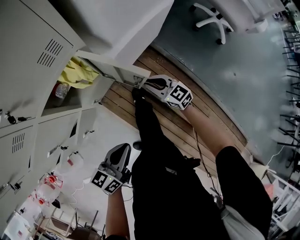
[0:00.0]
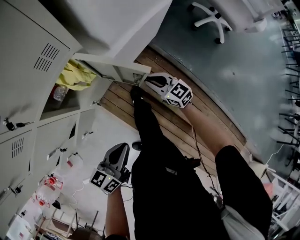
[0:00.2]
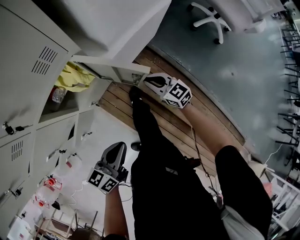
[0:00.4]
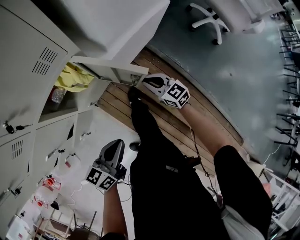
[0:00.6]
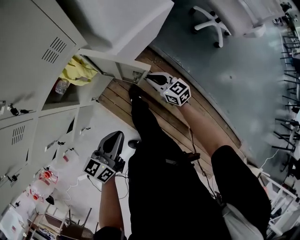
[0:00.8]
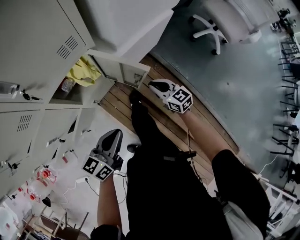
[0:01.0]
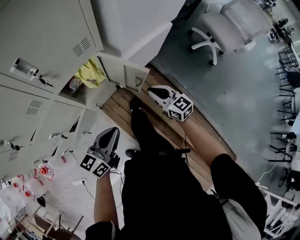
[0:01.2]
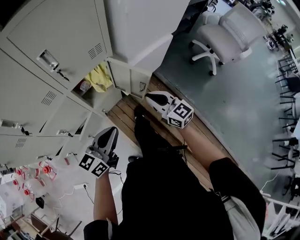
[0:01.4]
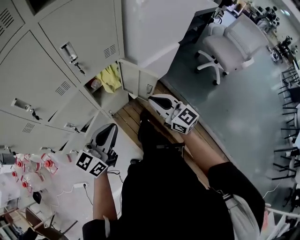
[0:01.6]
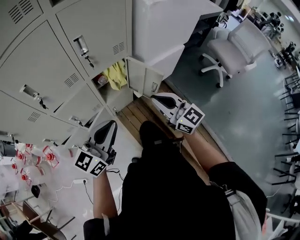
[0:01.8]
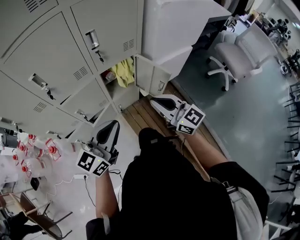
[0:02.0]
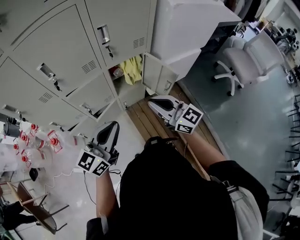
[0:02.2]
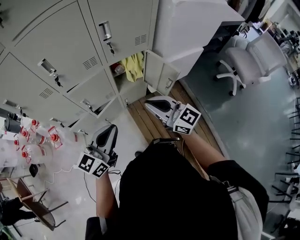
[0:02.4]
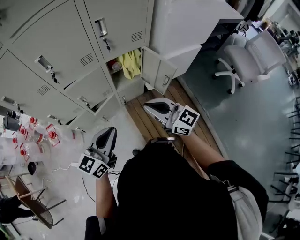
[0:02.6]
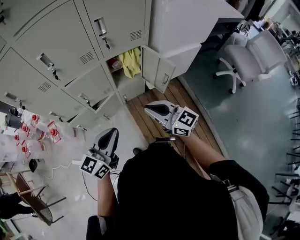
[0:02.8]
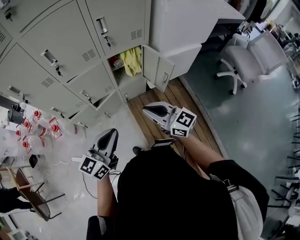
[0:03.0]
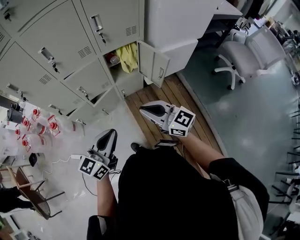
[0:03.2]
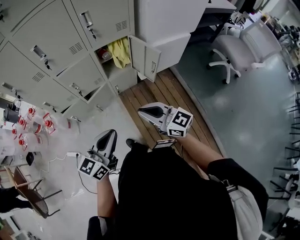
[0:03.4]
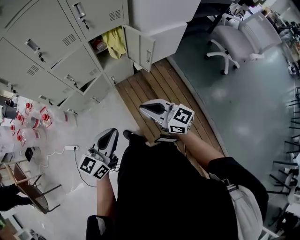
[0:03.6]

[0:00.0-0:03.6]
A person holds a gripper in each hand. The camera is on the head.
0:00.0 to 0:01.8: The right gripper goes some 40 cm upward and backward, and turns by about 30 degrees; the left gripper moves upward, roughly 25 cm, and turns by roughly 40 degrees.
0:01.8 to 0:03.6: Both grippers travel together backward, about 25 cm. The right gripper turns by some 20 degrees.

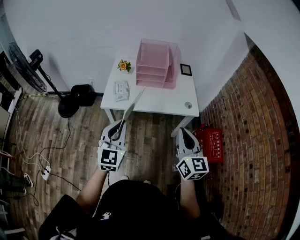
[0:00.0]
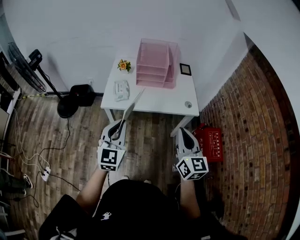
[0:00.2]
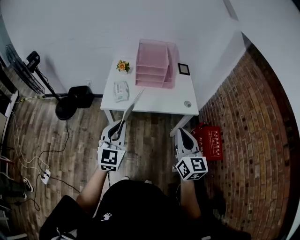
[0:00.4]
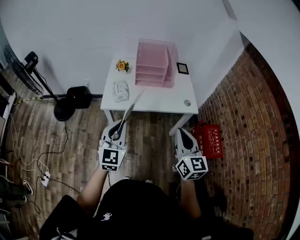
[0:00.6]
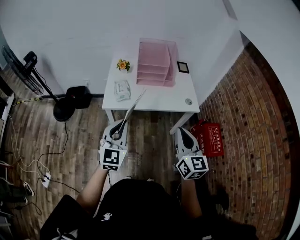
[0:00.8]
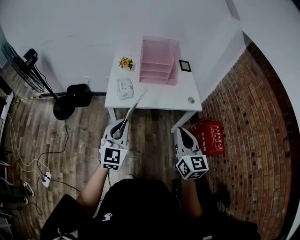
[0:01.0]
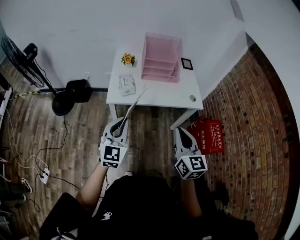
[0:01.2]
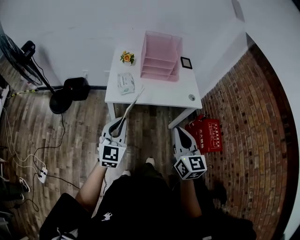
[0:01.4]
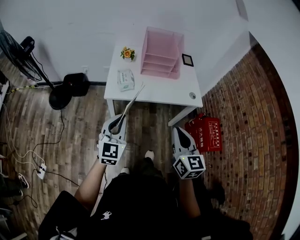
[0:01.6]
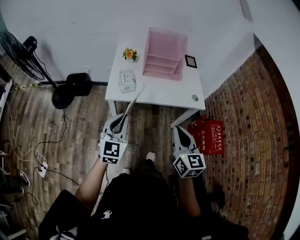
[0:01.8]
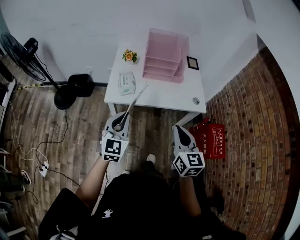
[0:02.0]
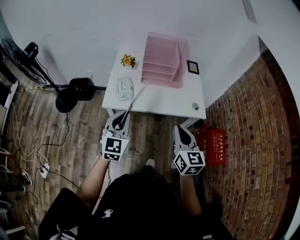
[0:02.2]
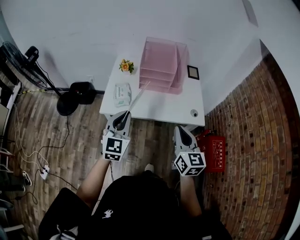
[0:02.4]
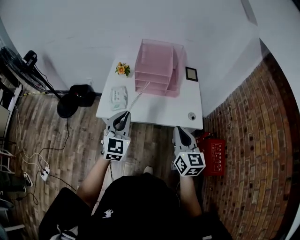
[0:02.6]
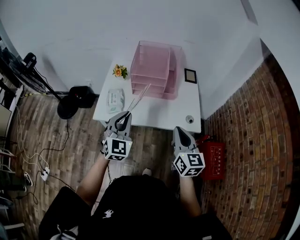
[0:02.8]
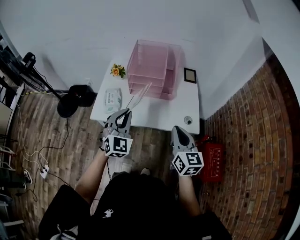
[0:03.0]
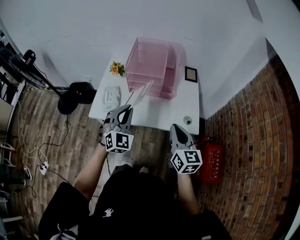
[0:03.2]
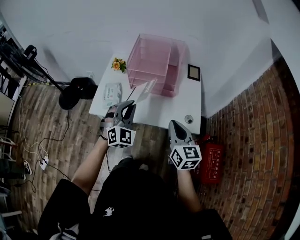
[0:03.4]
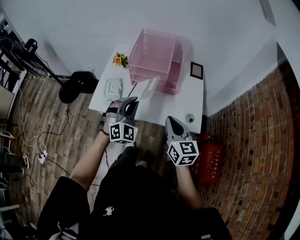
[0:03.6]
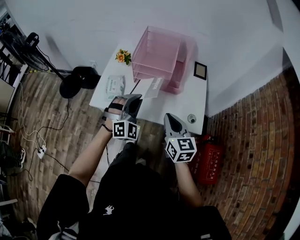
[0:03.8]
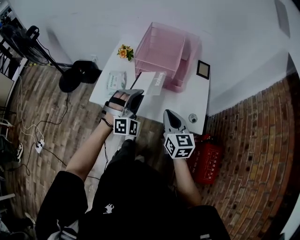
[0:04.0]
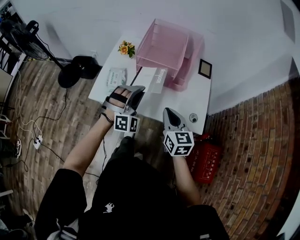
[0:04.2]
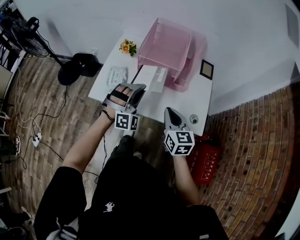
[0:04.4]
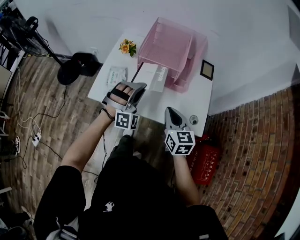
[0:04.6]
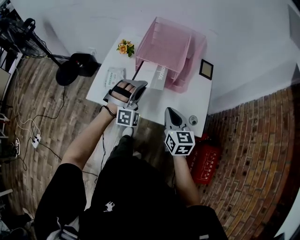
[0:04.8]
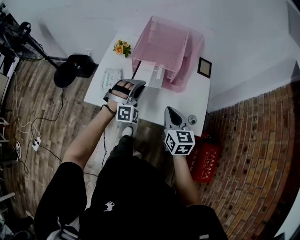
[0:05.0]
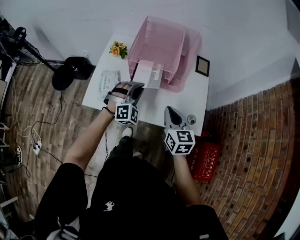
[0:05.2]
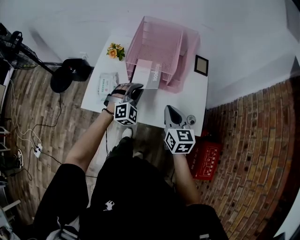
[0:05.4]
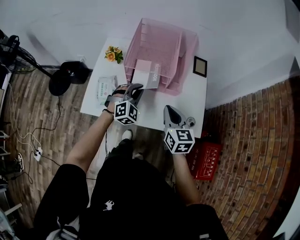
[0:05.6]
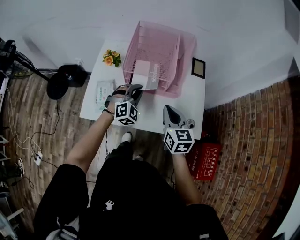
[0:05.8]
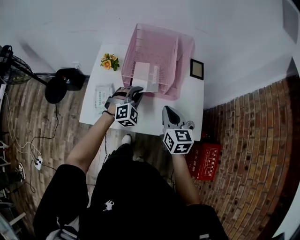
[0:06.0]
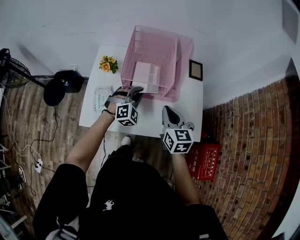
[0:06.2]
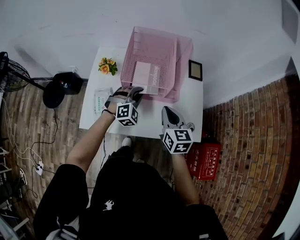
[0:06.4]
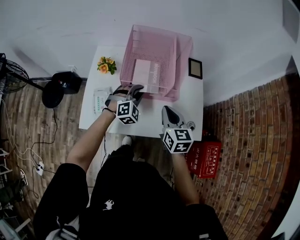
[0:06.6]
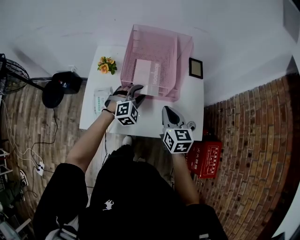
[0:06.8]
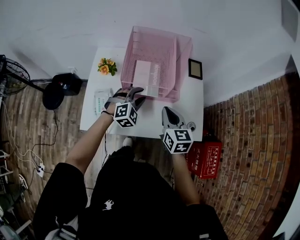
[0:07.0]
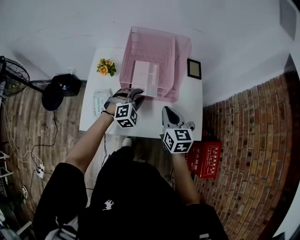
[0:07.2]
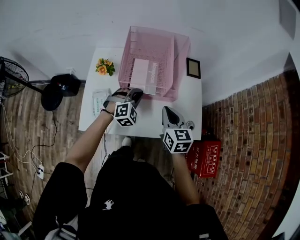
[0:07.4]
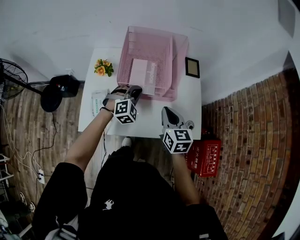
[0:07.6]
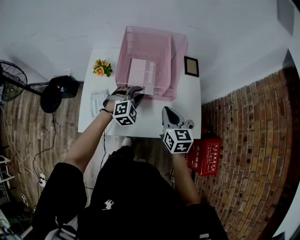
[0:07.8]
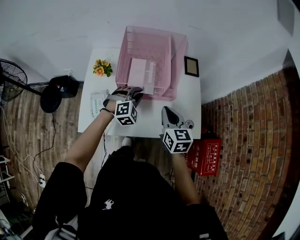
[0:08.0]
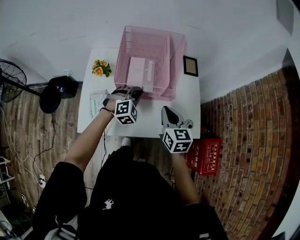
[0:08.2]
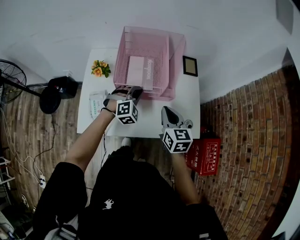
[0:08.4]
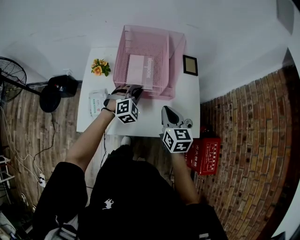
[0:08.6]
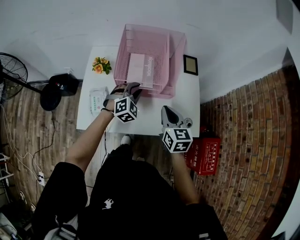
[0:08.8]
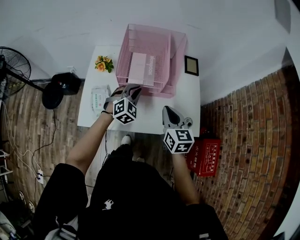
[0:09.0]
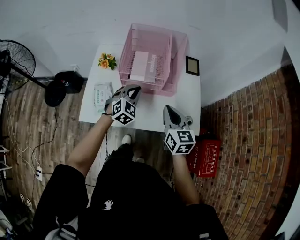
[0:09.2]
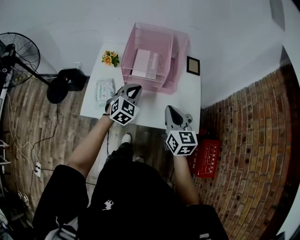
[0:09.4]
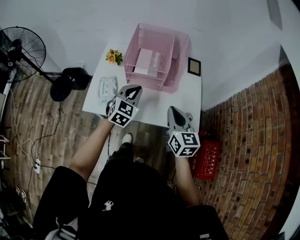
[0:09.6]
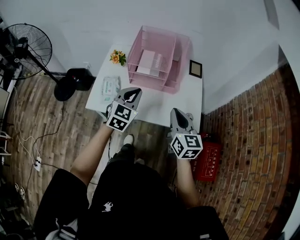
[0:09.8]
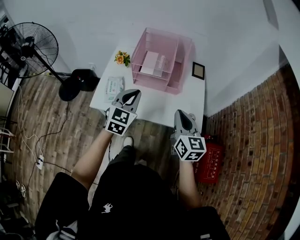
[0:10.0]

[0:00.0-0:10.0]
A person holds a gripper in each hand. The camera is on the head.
0:00.0 to 0:01.4: The two grippers go about 10 cm to the left.
0:01.4 to 0:02.8: Both grippers move forward and to the right, about 25 cm.
0:02.8 to 0:04.2: The left gripper is displaced forward, downward and to the right by some 15 cm, and rolls clockwise, seen from behind, by some 40 degrees; the right gripper moves forward and downward, some 15 cm.
0:04.2 to 0:05.8: The left gripper moves forward and downward, some 15 cm, and rotates approximately 30 degrees, while the right gripper travels forward by some 10 cm.
0:05.8 to 0:07.2: The left gripper opens its fingers.
0:07.2 to 0:08.6: The grippers stay close to where they were, moving slightly.
0:08.6 to 0:10.0: Both grippers travel together backward and upward, approximately 20 cm. The left gripper turns by about 50 degrees.

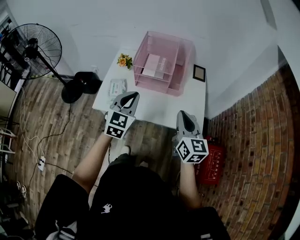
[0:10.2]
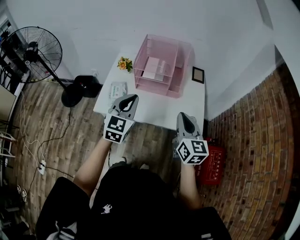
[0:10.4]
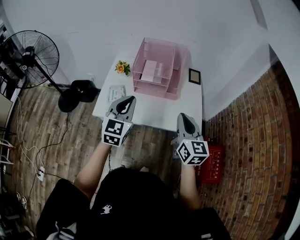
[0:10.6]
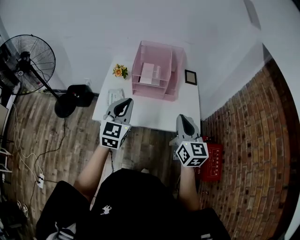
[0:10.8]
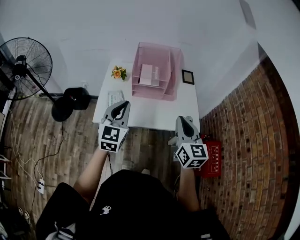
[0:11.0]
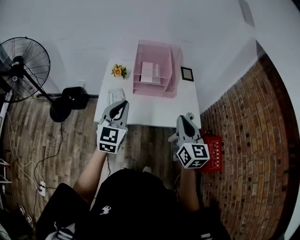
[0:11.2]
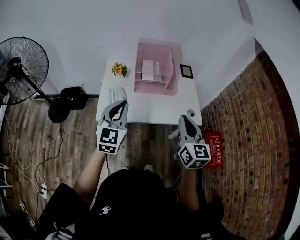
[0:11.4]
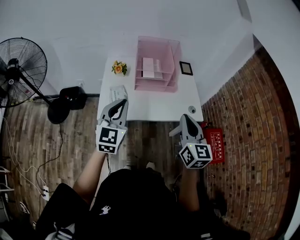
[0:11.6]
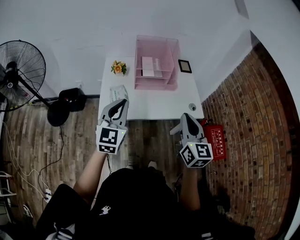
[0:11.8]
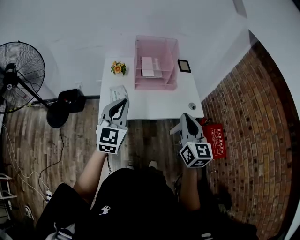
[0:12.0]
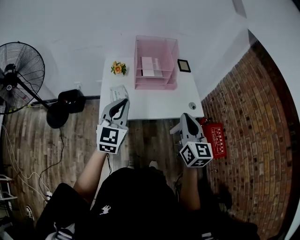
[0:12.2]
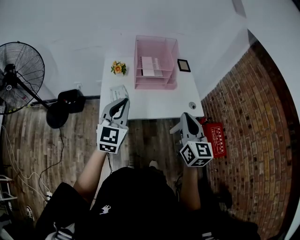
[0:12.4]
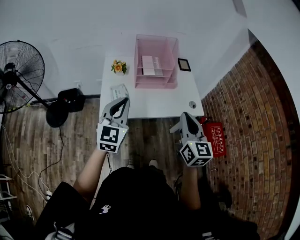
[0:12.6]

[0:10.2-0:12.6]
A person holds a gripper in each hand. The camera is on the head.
0:10.2 to 0:11.4: The two grippers go approximately 15 cm to the left, backward and upward.
0:11.4 to 0:12.6: The grippers make only small movements.

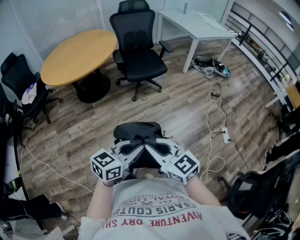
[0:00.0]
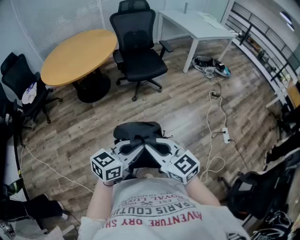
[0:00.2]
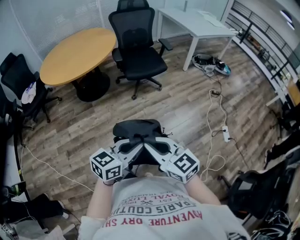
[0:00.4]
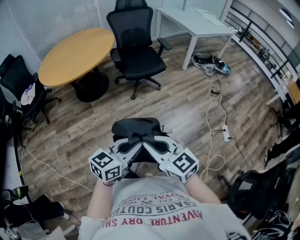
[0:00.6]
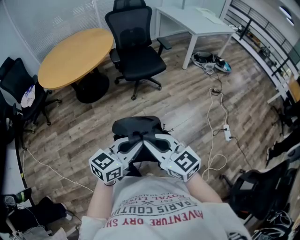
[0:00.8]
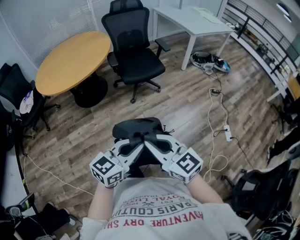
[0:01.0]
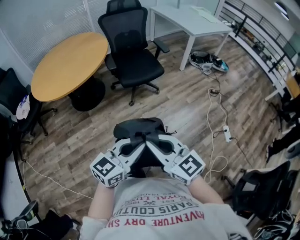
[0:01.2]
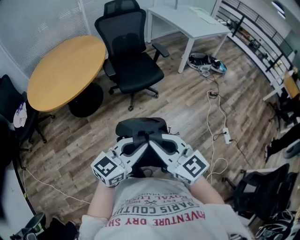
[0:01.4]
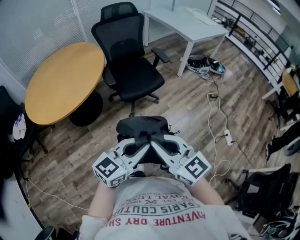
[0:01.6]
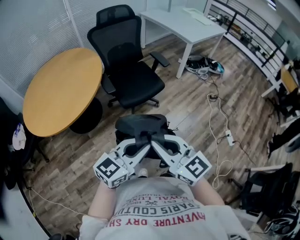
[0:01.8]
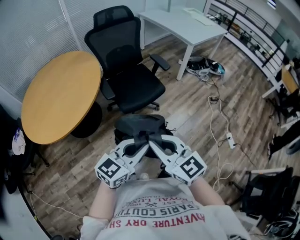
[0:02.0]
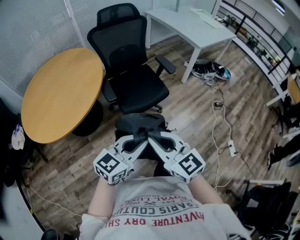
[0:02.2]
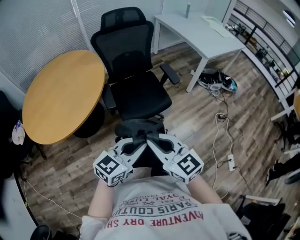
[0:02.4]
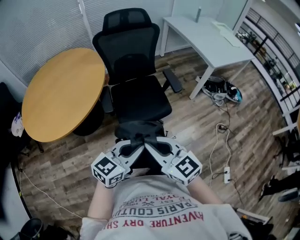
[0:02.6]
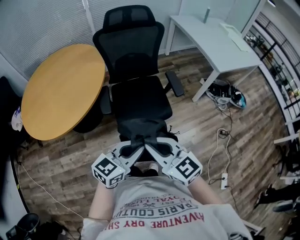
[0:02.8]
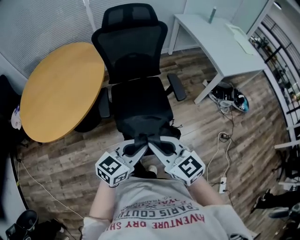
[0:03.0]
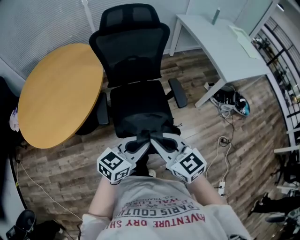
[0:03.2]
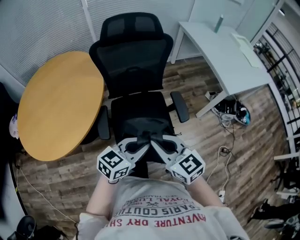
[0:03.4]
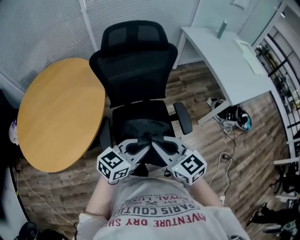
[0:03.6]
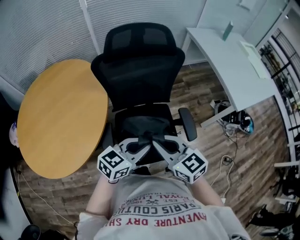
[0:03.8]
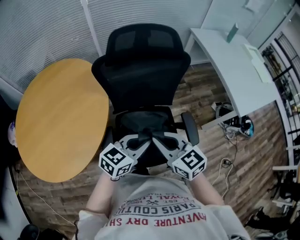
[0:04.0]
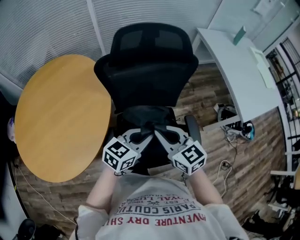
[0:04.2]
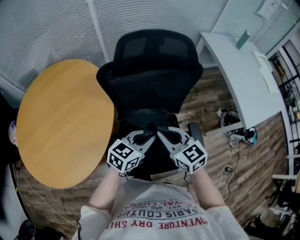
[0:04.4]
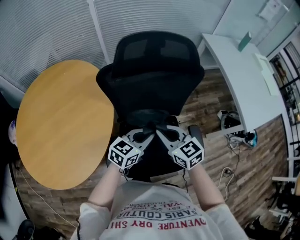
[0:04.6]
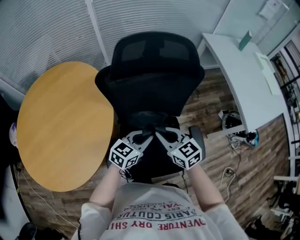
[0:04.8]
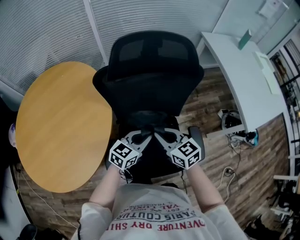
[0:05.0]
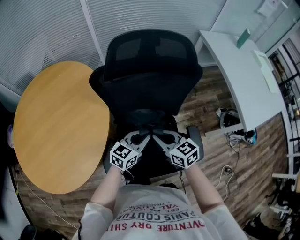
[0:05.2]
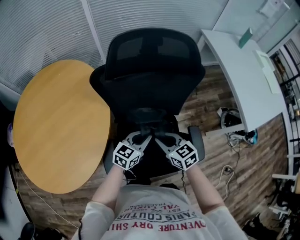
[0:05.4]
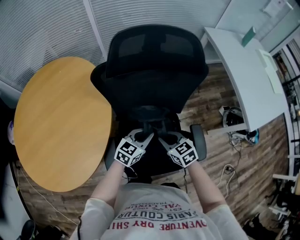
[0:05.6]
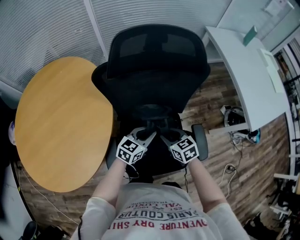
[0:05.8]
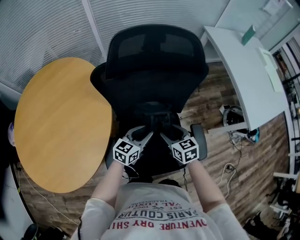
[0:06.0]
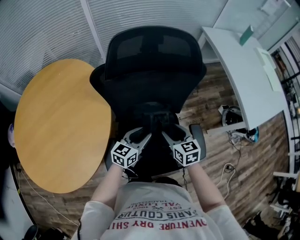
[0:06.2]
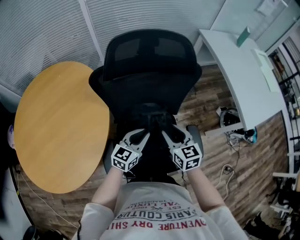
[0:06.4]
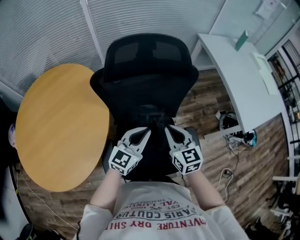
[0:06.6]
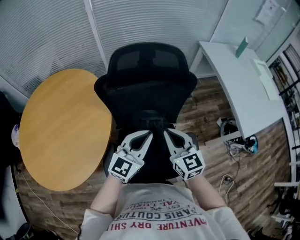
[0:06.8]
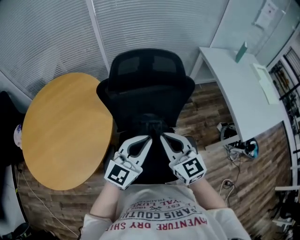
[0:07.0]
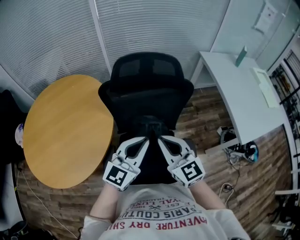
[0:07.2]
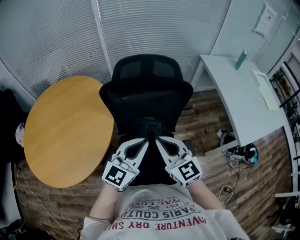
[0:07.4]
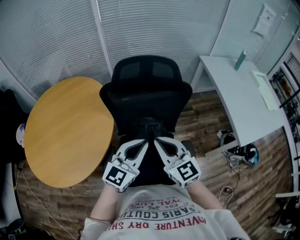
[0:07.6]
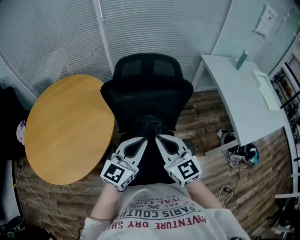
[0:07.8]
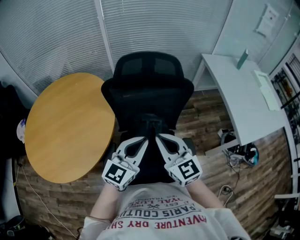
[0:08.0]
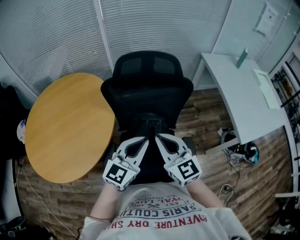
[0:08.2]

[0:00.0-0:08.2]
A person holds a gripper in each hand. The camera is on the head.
0:00.0 to 0:01.6: The grippers both shift forward by some 25 cm.
0:01.6 to 0:03.2: The two grippers travel together, forward, some 50 cm. The left gripper changes its angle by roughly 20 degrees.
0:03.2 to 0:05.0: The two grippers go approximately 35 cm forward.
0:05.0 to 0:06.6: The left gripper heads upward, covering about 5 cm, and opens, then closes again. The right gripper travels to the right by approximately 5 cm, travels downward and back again, approximately 10 cm each way, turns by roughly 20 degrees, and opens, then closes again.
0:06.6 to 0:08.2: Both grippers move upward and backward, some 15 cm. The right gripper rotates approximately 20 degrees.
